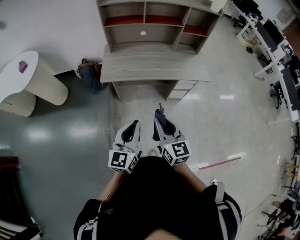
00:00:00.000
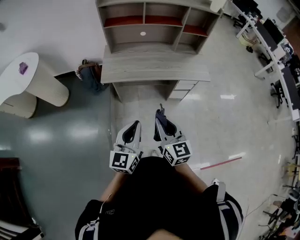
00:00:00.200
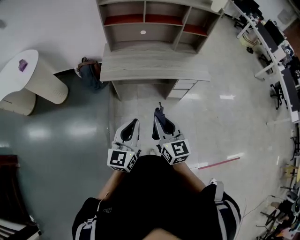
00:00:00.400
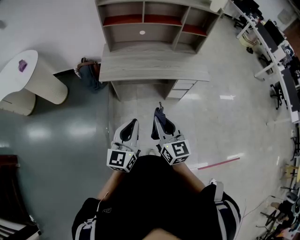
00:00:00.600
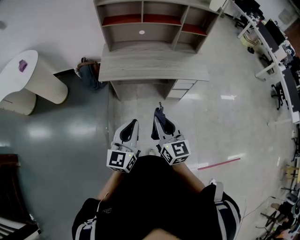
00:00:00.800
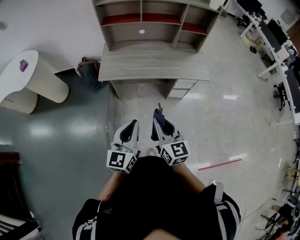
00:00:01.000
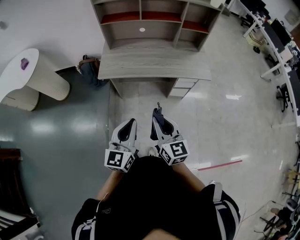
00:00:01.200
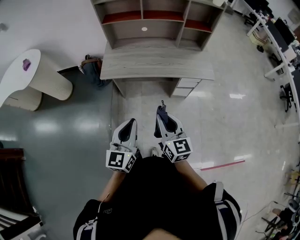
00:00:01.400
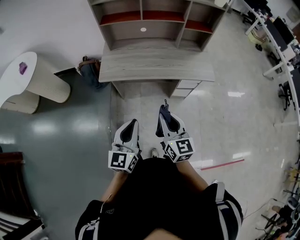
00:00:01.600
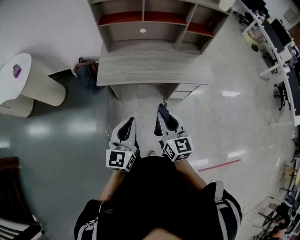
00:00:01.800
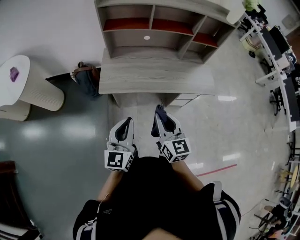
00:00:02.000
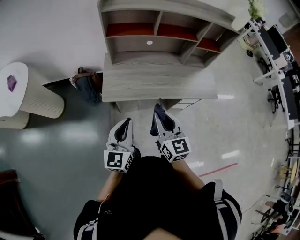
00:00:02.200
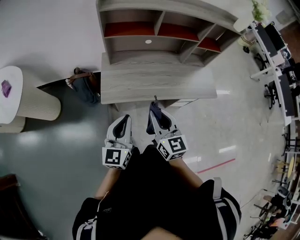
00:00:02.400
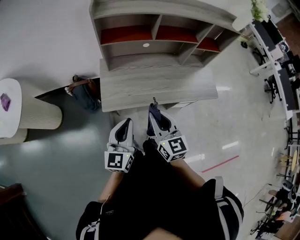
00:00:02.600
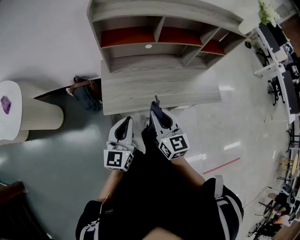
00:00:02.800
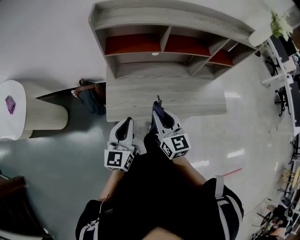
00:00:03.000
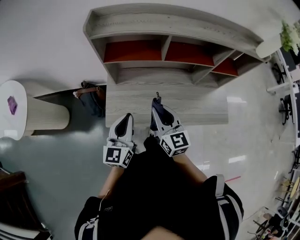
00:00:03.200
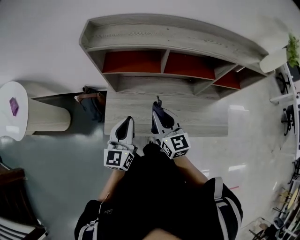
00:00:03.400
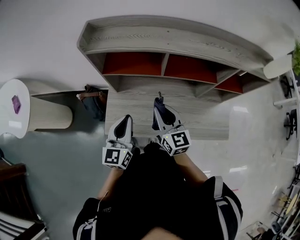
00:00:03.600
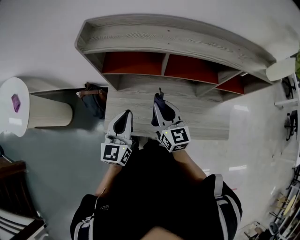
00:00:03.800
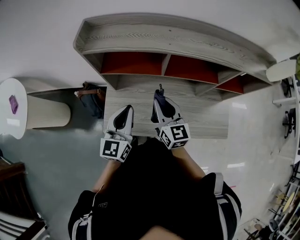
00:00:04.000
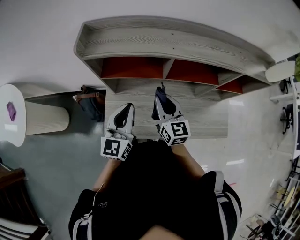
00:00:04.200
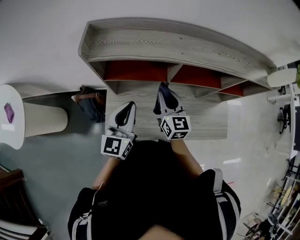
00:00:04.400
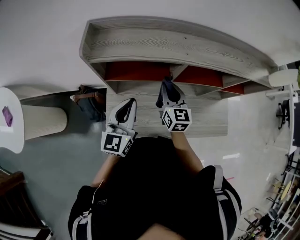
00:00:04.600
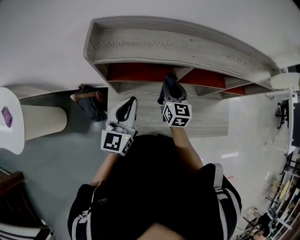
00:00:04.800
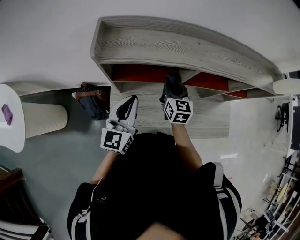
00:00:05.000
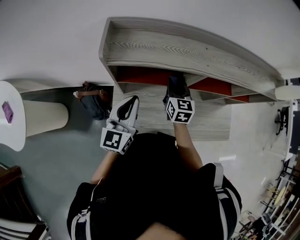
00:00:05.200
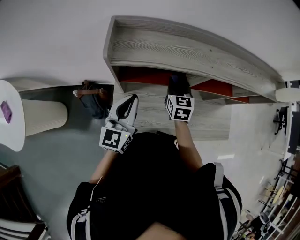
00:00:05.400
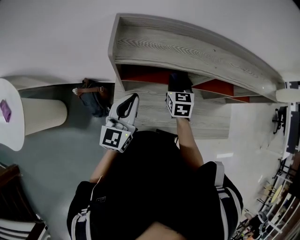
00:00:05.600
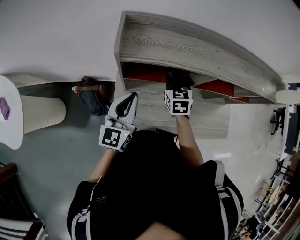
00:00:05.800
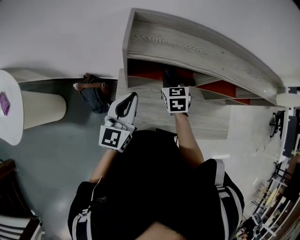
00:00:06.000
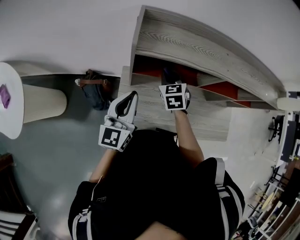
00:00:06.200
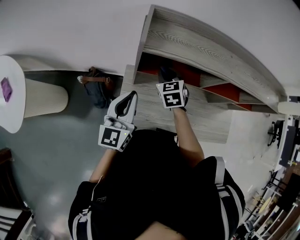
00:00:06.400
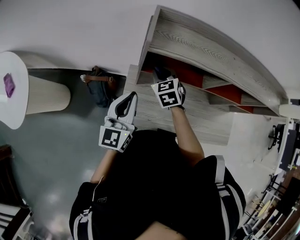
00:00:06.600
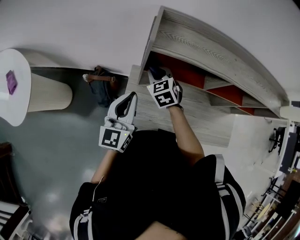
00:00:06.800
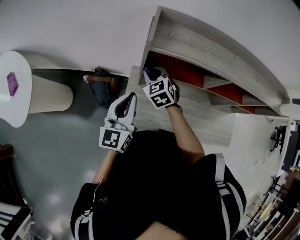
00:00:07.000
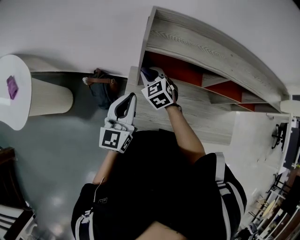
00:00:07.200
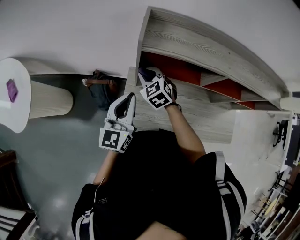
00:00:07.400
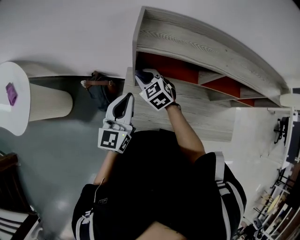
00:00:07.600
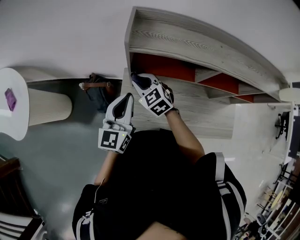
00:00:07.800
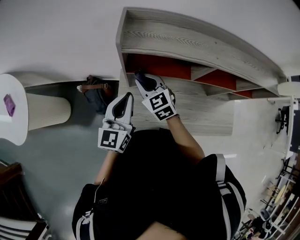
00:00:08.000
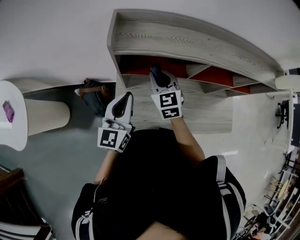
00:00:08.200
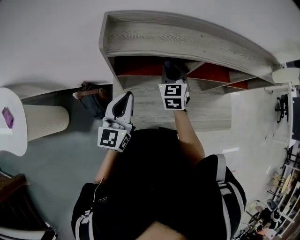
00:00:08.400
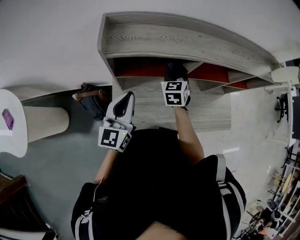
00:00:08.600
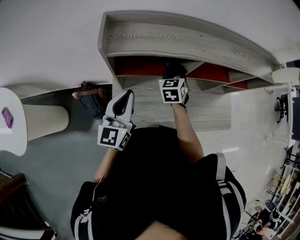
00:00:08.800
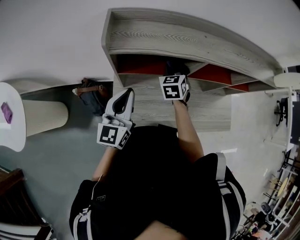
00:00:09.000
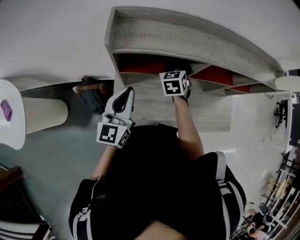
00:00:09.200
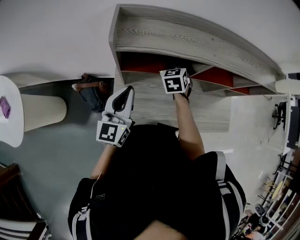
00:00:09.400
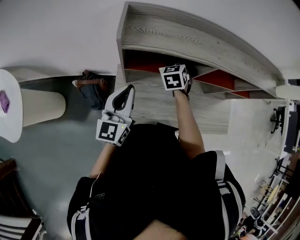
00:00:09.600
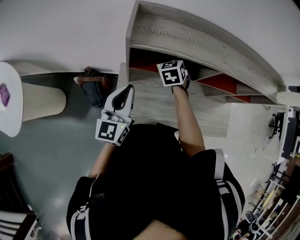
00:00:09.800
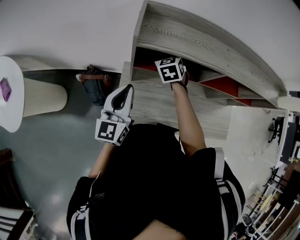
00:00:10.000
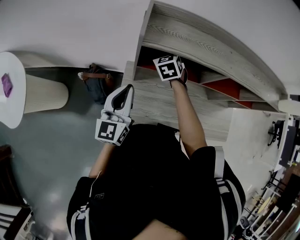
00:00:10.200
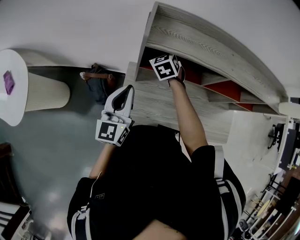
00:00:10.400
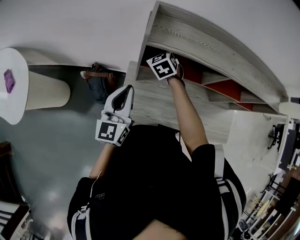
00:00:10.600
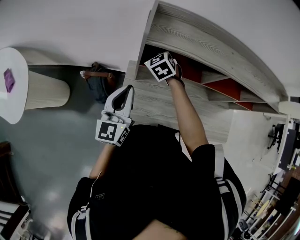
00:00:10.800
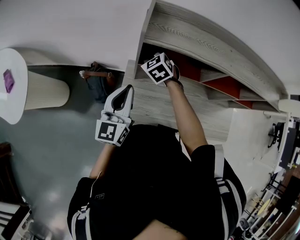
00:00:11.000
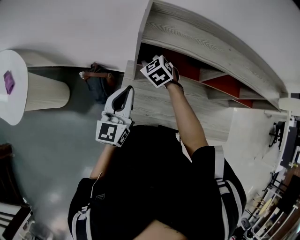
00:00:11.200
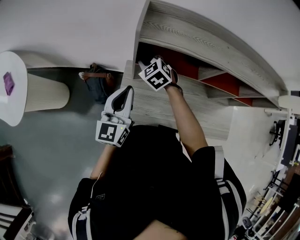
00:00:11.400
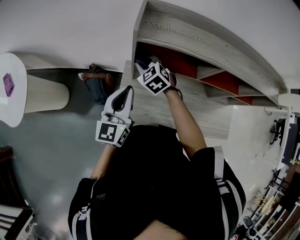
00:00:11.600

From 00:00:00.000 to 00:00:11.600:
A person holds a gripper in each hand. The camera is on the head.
From 00:00:00.000 to 00:00:01.400: The right gripper moves to the right, approximately 5 cm; the left gripper moves about 5 cm.
From 00:00:01.400 to 00:00:02.800: The grippers both shift forward and to the left by approximately 35 cm.
From 00:00:02.800 to 00:00:04.400: The two grippers go some 30 cm forward.
From 00:00:04.400 to 00:00:05.800: The right gripper is displaced forward, to the left and downward by some 15 cm, and changes its angle by approximately 30 degrees; the left gripper moves to the left, some 10 cm.
From 00:00:05.800 to 00:00:07.200: The right gripper travels to the left by roughly 20 cm, and rotates about 30 degrees. The left gripper is displaced to the left by some 5 cm.
From 00:00:07.200 to 00:00:08.800: The left gripper shifts by some 10 cm; the right gripper changes place by roughly 25 cm, and swivels roughly 40 degrees.
From 00:00:08.800 to 00:00:10.200: The left gripper goes approximately 5 cm to the left, while the right gripper is displaced to the left by some 15 cm, and changes its angle by some 20 degrees.
From 00:00:10.200 to 00:00:11.600: The right gripper shifts about 10 cm to the left and backward, and turns by roughly 20 degrees.

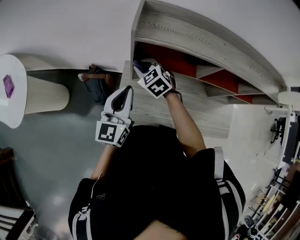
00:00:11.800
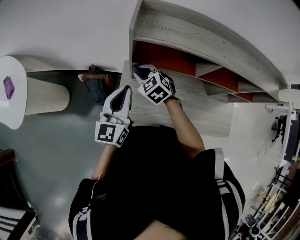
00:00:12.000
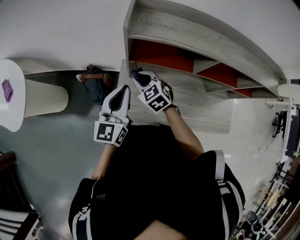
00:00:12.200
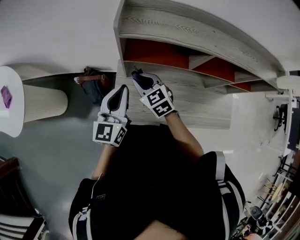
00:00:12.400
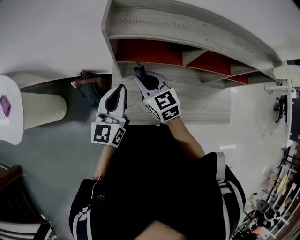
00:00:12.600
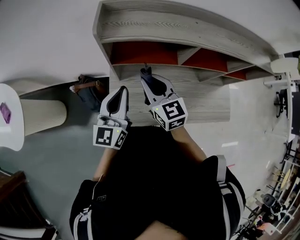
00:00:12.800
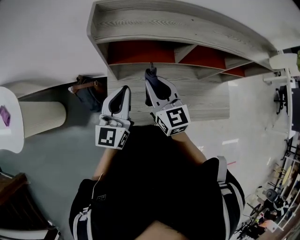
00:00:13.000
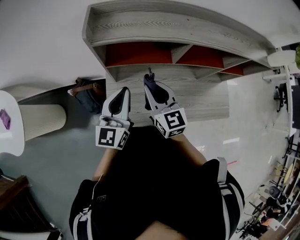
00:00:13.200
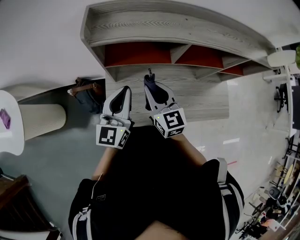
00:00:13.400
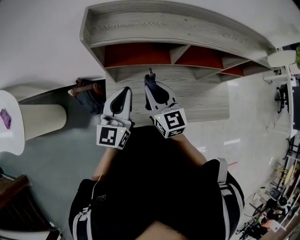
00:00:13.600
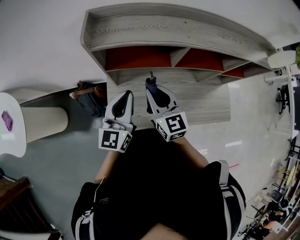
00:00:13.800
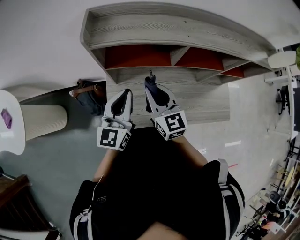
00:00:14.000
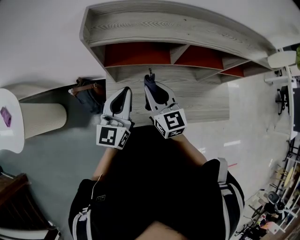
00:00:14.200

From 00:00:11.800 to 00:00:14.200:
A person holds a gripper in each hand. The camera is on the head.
From 00:00:11.800 to 00:00:13.000: The right gripper goes some 20 cm to the right, backward and upward, and angles its fingers upward, by roughly 30 degrees, while the left gripper travels to the right by approximately 5 cm.
From 00:00:13.000 to 00:00:14.200: The grippers make only small movements.

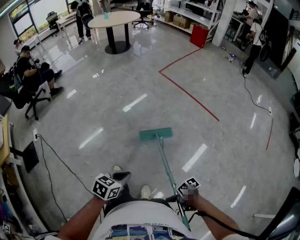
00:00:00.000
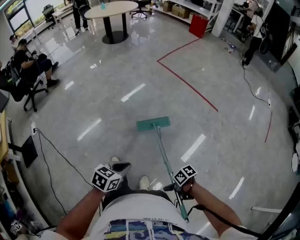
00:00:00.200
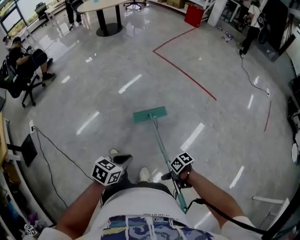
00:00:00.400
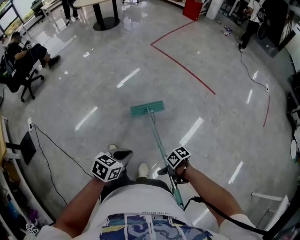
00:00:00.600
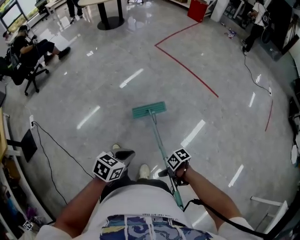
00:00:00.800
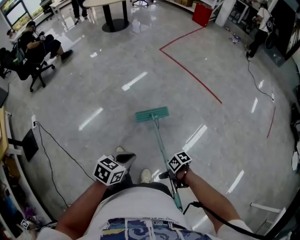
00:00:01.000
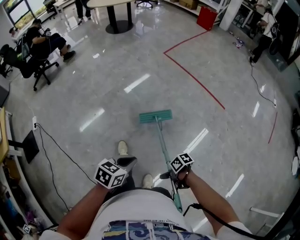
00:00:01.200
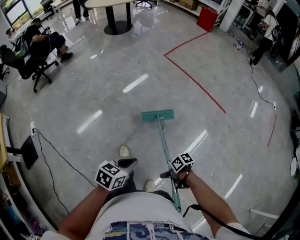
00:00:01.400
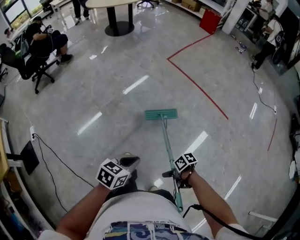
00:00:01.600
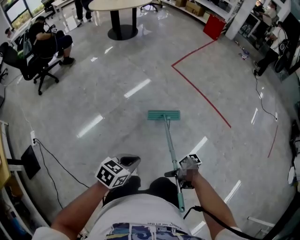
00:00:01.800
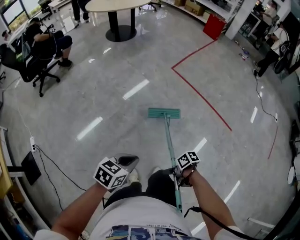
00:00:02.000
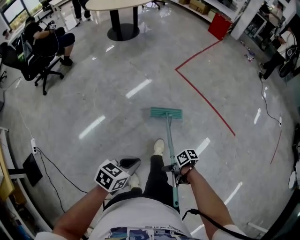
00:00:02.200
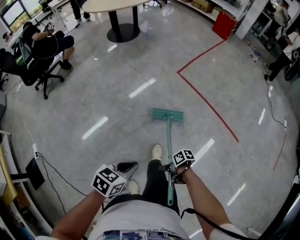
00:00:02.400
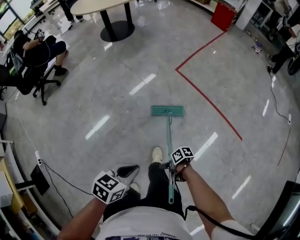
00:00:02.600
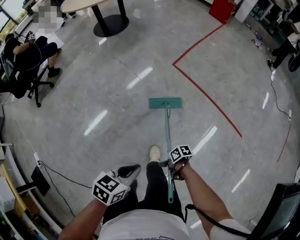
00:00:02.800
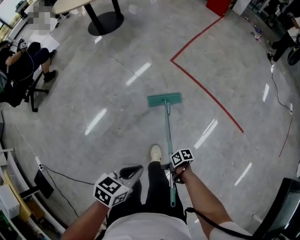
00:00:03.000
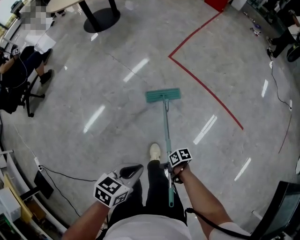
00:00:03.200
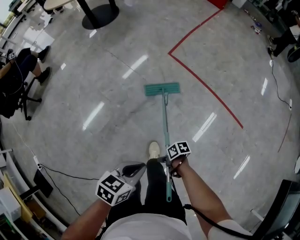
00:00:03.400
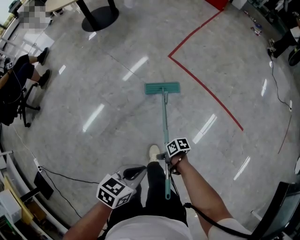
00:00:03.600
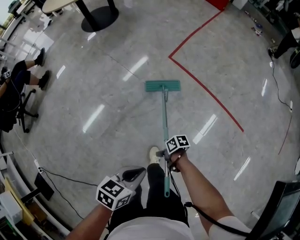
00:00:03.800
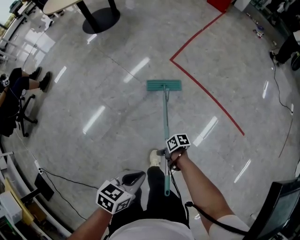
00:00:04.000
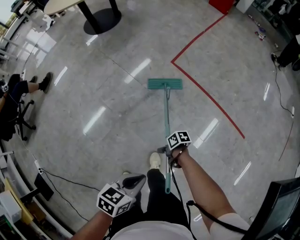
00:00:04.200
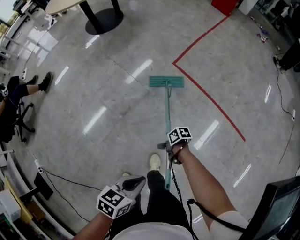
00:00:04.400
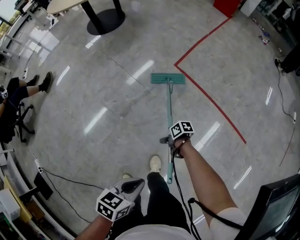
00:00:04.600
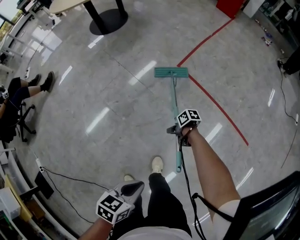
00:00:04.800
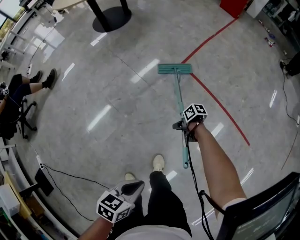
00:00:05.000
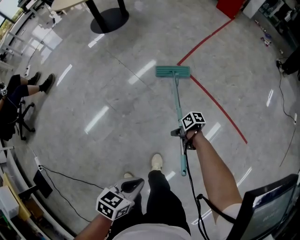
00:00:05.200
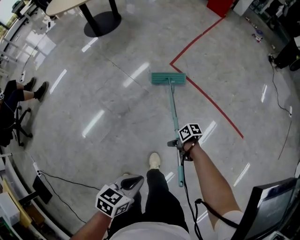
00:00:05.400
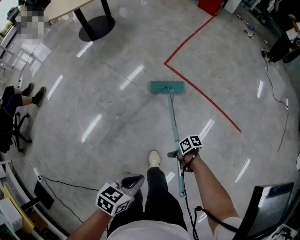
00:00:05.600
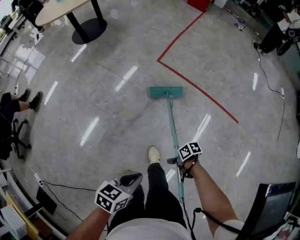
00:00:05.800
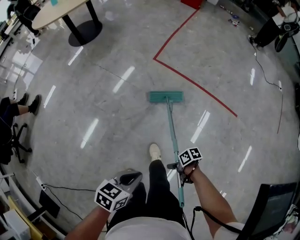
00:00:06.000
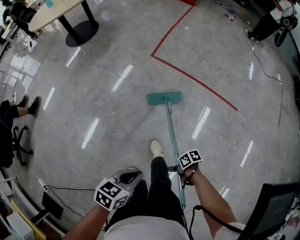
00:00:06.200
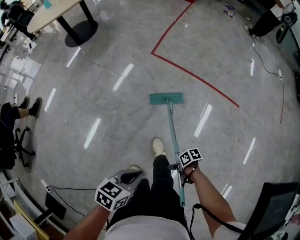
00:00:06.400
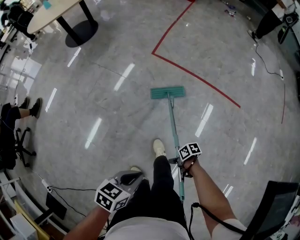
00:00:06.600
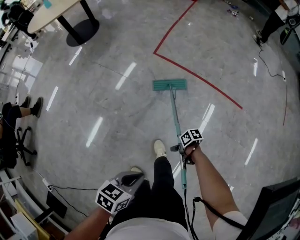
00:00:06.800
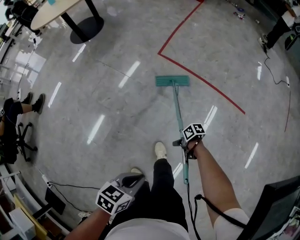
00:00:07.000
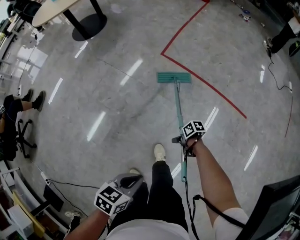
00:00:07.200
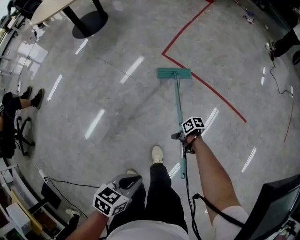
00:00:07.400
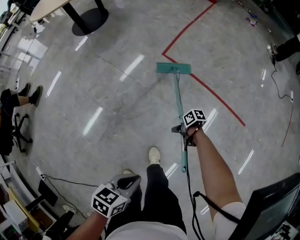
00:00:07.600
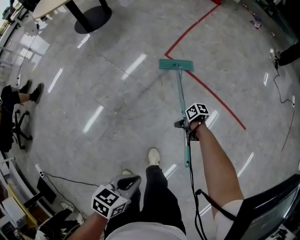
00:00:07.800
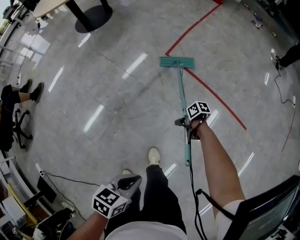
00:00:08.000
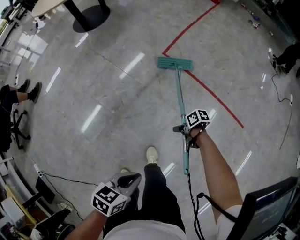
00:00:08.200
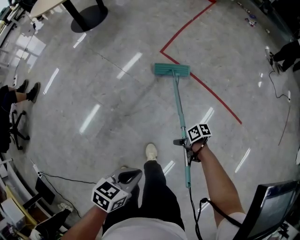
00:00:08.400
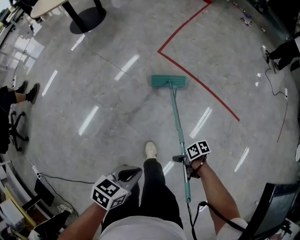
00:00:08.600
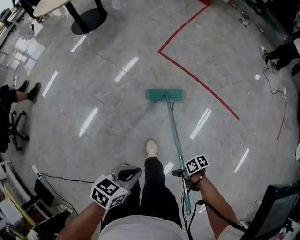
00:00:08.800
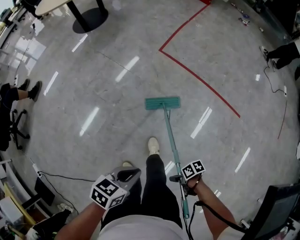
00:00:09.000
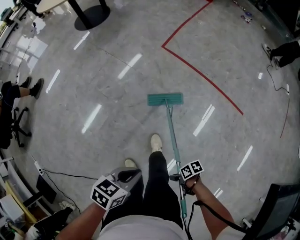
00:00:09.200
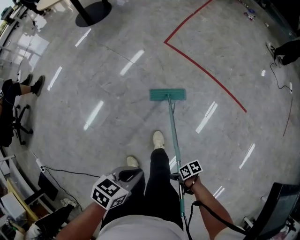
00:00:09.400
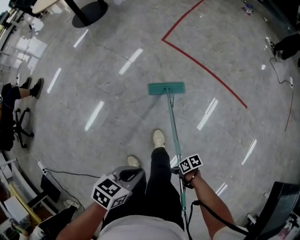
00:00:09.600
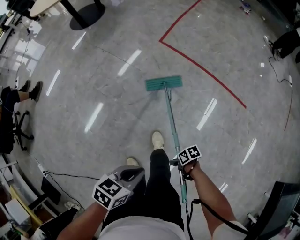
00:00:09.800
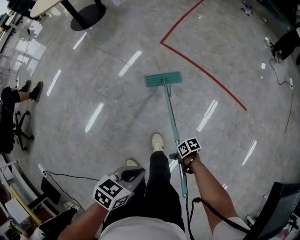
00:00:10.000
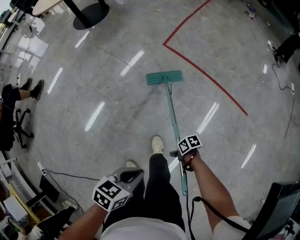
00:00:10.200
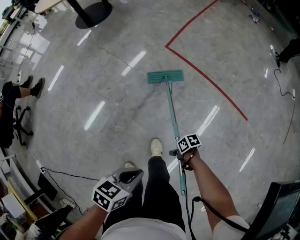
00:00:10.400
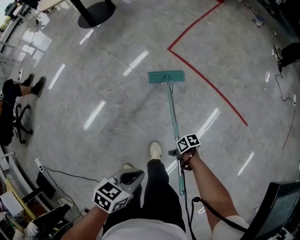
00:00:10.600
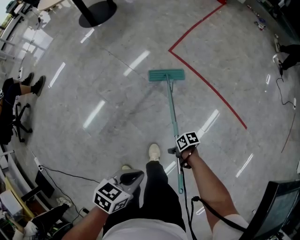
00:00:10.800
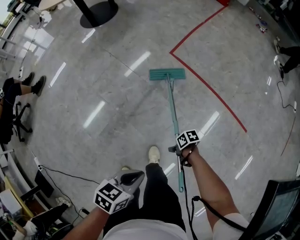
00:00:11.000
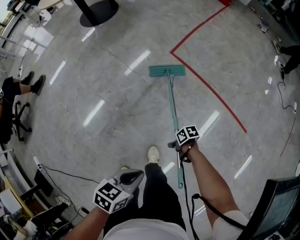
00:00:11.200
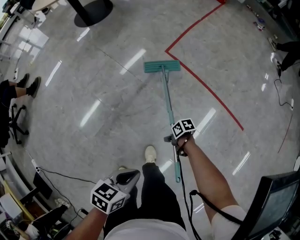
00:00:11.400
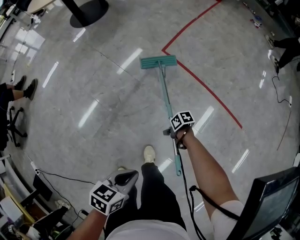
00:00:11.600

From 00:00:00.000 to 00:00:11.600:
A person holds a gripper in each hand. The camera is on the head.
From 00:00:00.000 to 00:00:01.400: The left gripper shifts by some 15 cm.
From 00:00:01.400 to 00:00:02.800: The left gripper moves approximately 40 cm.
From 00:00:02.800 to 00:00:04.400: The left gripper moves roughly 10 cm.
From 00:00:04.400 to 00:00:05.800: The left gripper shifts by roughly 10 cm.
From 00:00:10.200 to 00:00:11.600: The left gripper ends up about 10 cm from where it was.
